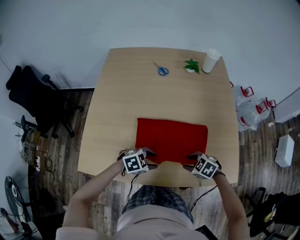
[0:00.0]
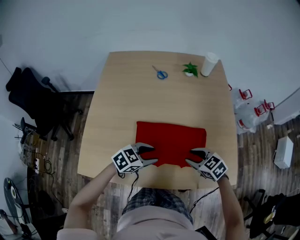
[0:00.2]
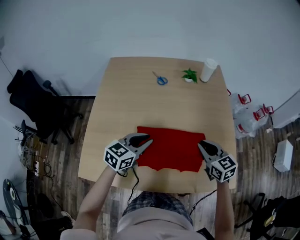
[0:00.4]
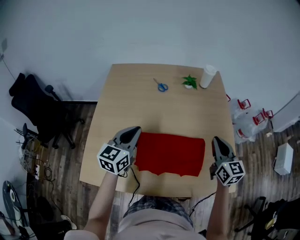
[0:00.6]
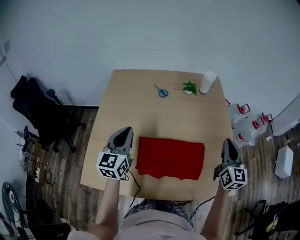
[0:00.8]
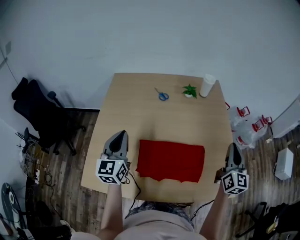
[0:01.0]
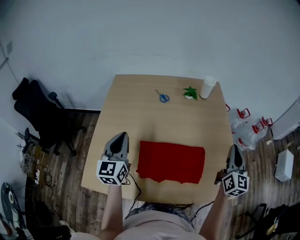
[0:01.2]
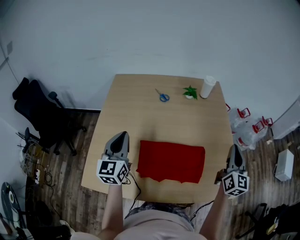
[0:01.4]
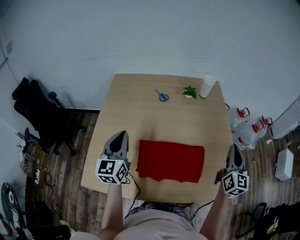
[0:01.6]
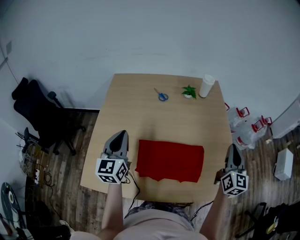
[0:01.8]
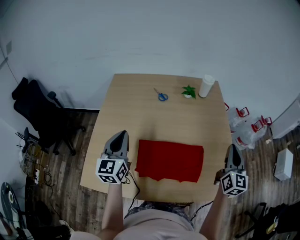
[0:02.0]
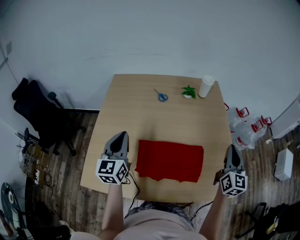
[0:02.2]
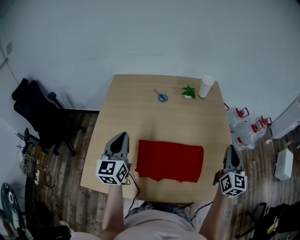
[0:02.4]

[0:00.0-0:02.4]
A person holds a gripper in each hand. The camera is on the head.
0:00.0 to 0:01.2: Both grippers move upward, some 30 cm. The right gripper tilts its fingers about 60 degrees upward, and closes its fingers, while the left gripper tilts its fingers some 50 degrees upward, and closes its fingers.
0:01.2 to 0:02.4: The two grippers keep their place.

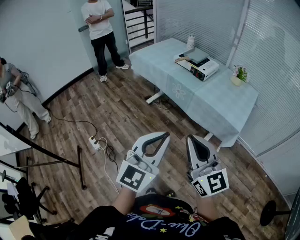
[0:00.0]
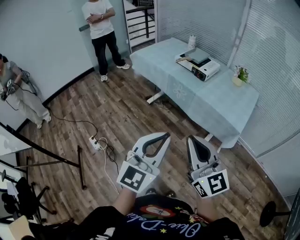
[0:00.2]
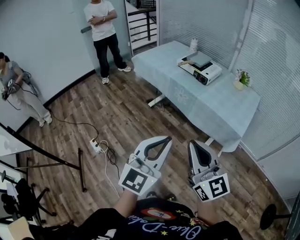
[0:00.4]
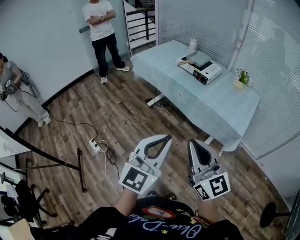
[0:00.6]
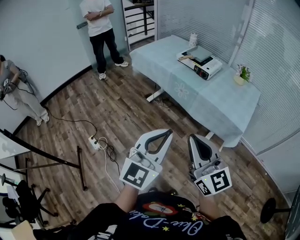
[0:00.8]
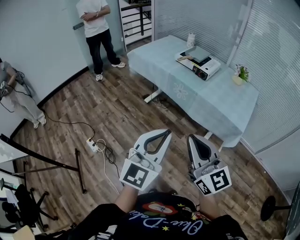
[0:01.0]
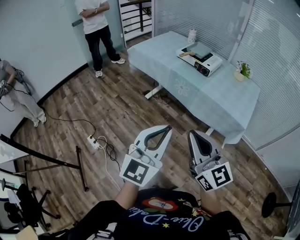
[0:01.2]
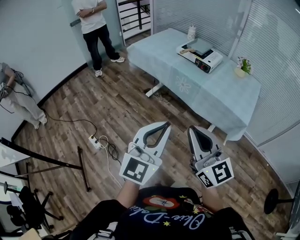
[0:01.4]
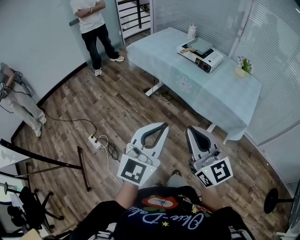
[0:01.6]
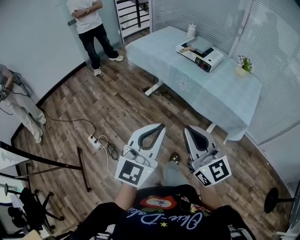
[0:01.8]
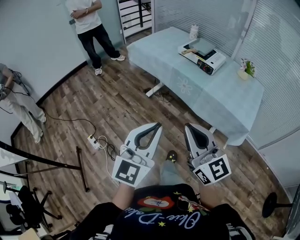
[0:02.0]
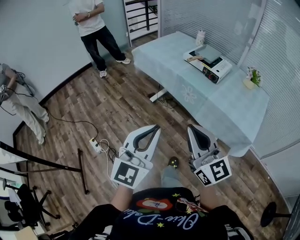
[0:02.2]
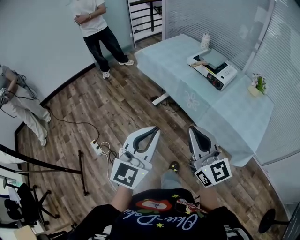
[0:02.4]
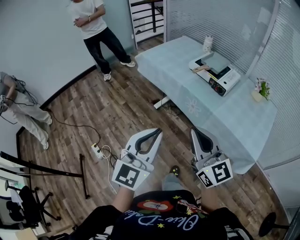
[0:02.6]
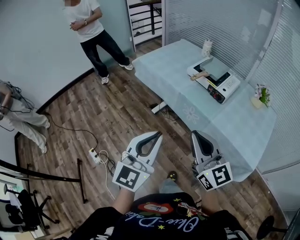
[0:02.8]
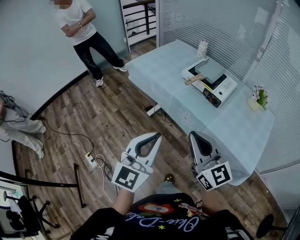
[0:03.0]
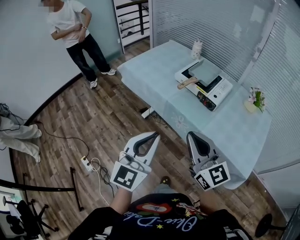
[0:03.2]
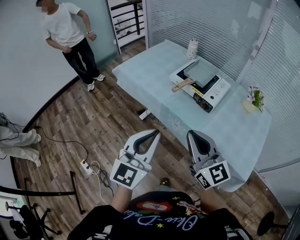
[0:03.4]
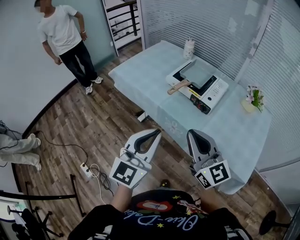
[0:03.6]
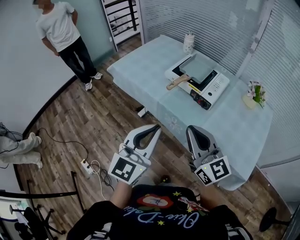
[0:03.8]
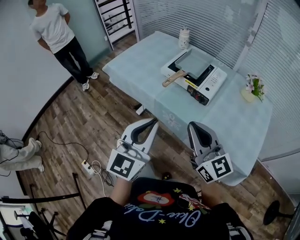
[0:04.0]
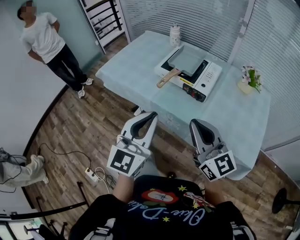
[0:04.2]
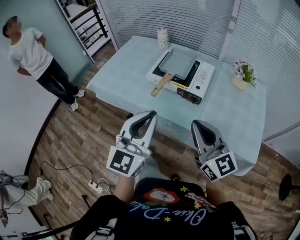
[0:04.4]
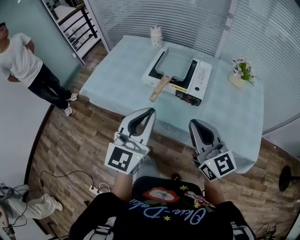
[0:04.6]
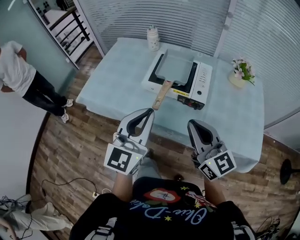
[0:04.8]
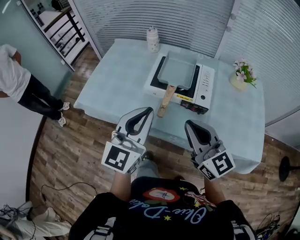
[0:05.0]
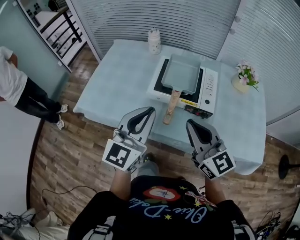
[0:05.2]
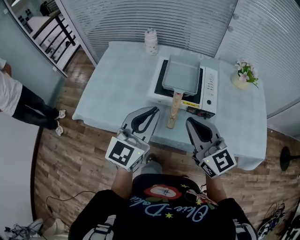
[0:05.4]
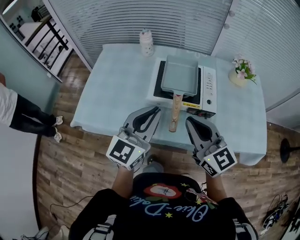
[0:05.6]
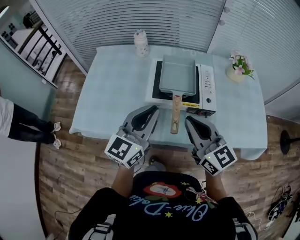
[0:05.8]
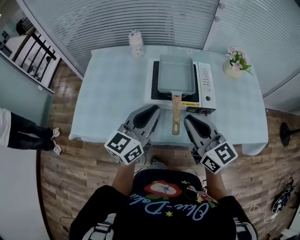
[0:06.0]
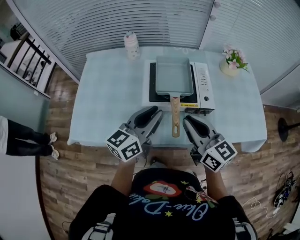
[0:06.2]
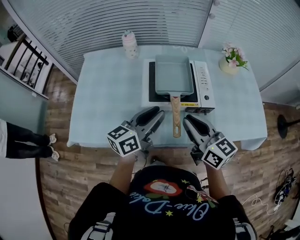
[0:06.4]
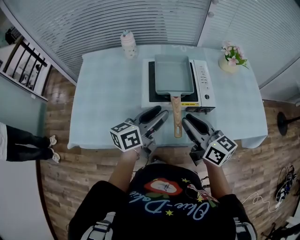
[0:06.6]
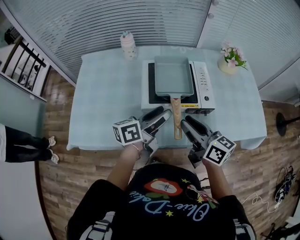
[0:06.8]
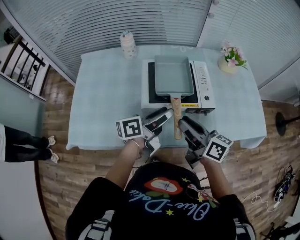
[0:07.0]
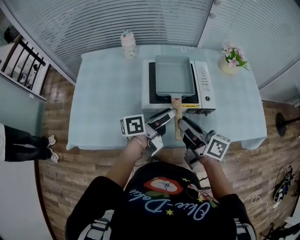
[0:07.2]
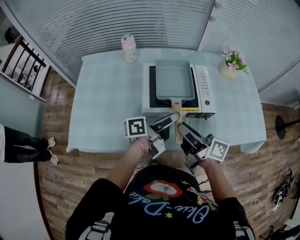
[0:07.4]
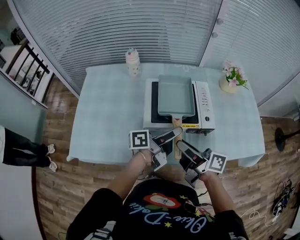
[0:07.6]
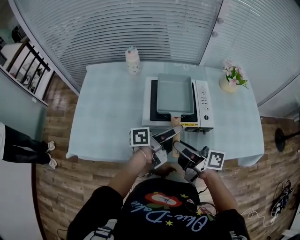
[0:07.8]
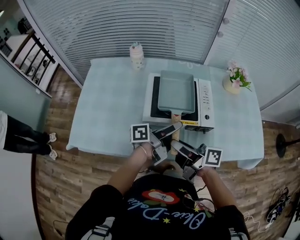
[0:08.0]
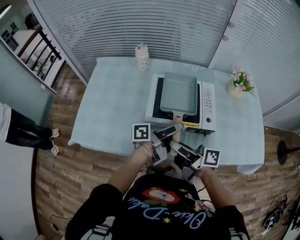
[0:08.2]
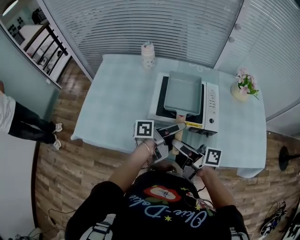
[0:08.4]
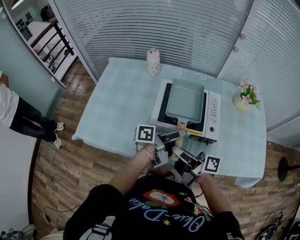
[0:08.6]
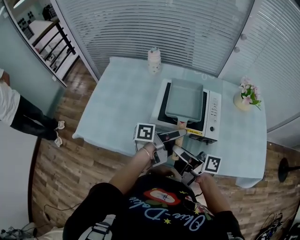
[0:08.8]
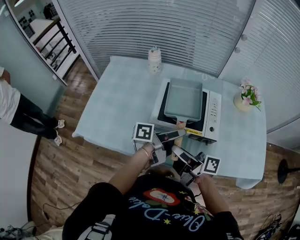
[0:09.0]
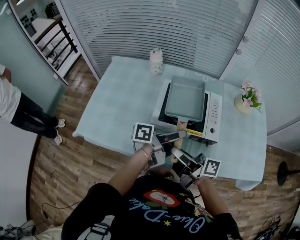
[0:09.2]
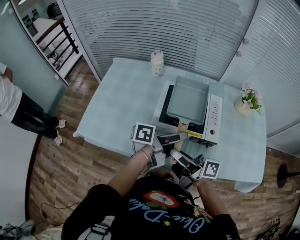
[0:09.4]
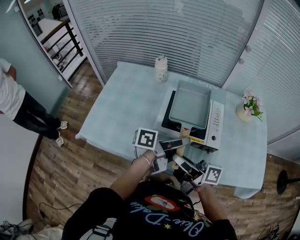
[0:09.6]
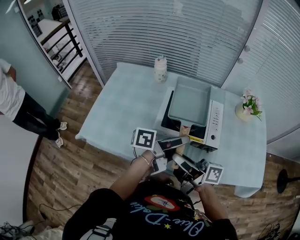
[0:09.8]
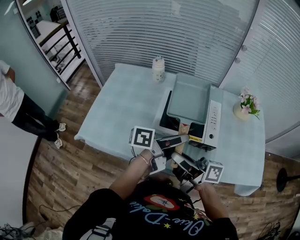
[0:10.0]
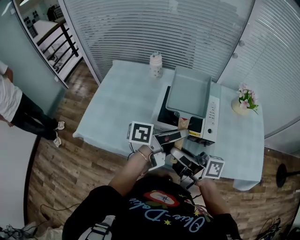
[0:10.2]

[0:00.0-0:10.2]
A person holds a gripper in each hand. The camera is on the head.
0:00.0 to 0:01.4: The left gripper moves to the left and forward, about 10 cm. The right gripper heads to the left, covering roughly 5 cm.
0:01.4 to 0:03.0: Both grippers move forward, approximately 30 cm.
0:03.0 to 0:04.4: The two grippers go approximately 20 cm forward and to the right.
0:04.4 to 0:05.8: Both grippers travel together forward and to the left, some 25 cm. The left gripper swivels about 30 degrees.
0:05.8 to 0:07.2: The right gripper moves downward, about 5 cm, rolls clockwise, seen from behind, by approximately 50 degrees, and opens. The left gripper travels downward and forward by roughly 15 cm, twists about 60 degrees counterclockwise, seen from behind, and opens up.
0:07.2 to 0:08.8: The right gripper swivels approximately 30 degrees, while the left gripper closes.
0:08.8 to 0:10.2: The two grippers go about 10 cm upward.

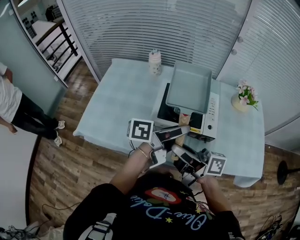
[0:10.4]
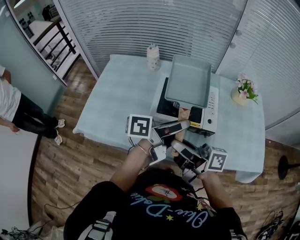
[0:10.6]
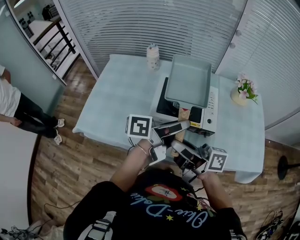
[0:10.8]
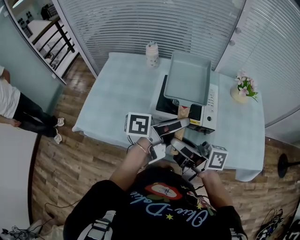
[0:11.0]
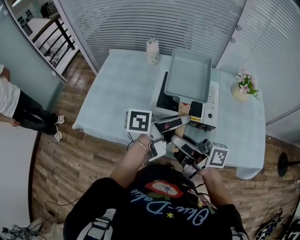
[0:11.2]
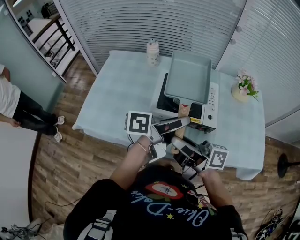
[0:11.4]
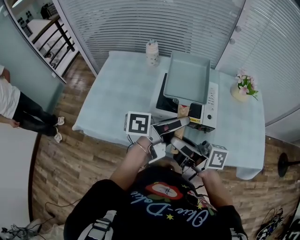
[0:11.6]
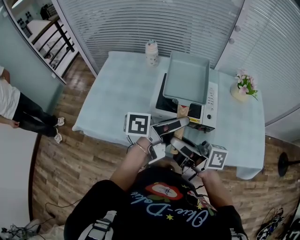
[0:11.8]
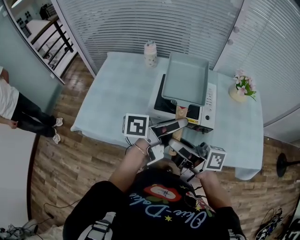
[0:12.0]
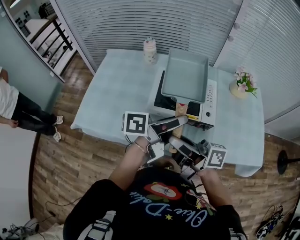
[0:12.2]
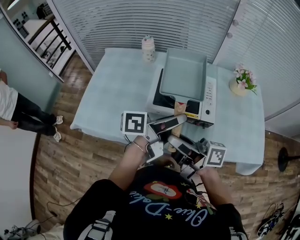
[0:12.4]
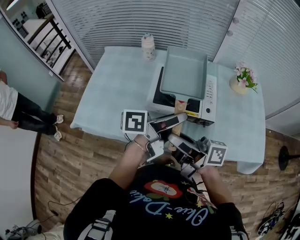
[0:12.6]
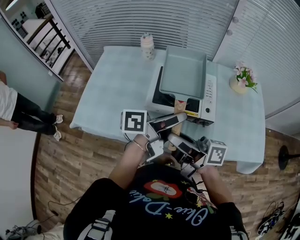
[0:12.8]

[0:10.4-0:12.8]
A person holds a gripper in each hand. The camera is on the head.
0:10.4 to 0:11.6: There are only small adjustments of the grippers.
0:11.6 to 0:12.8: The two grippers keep their place.

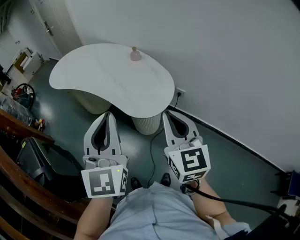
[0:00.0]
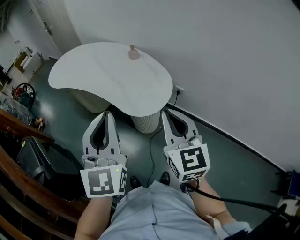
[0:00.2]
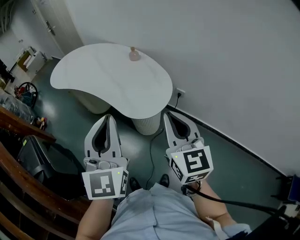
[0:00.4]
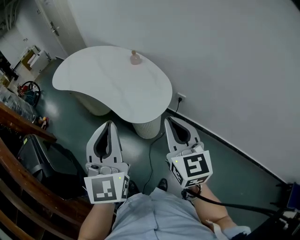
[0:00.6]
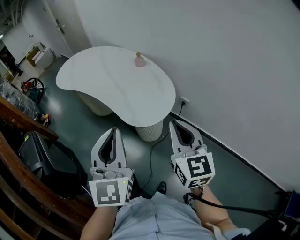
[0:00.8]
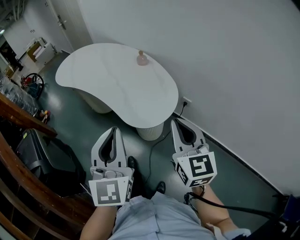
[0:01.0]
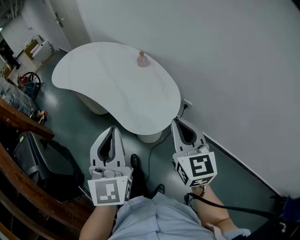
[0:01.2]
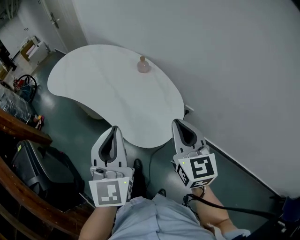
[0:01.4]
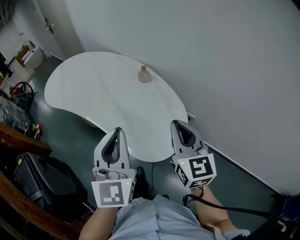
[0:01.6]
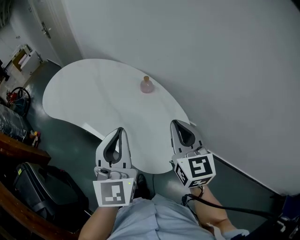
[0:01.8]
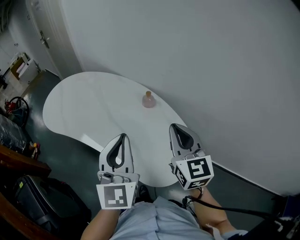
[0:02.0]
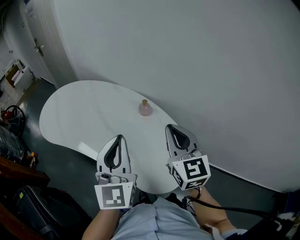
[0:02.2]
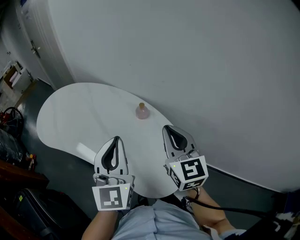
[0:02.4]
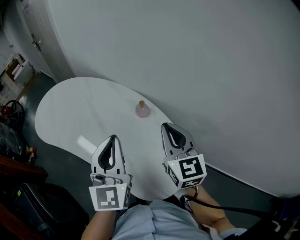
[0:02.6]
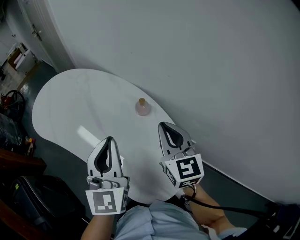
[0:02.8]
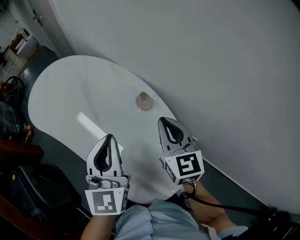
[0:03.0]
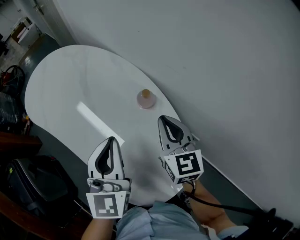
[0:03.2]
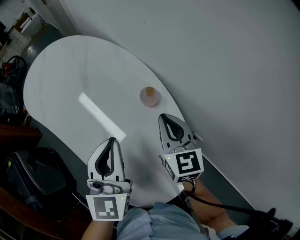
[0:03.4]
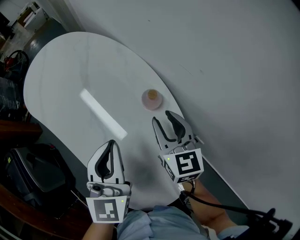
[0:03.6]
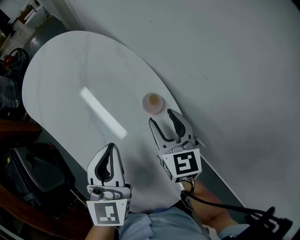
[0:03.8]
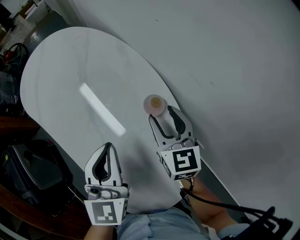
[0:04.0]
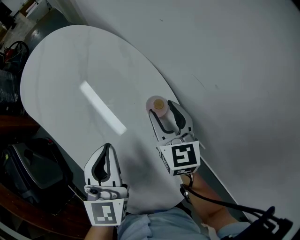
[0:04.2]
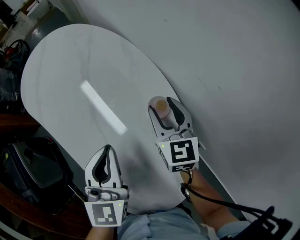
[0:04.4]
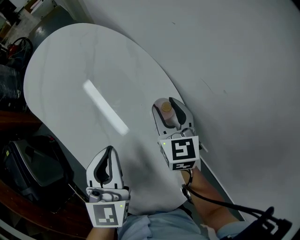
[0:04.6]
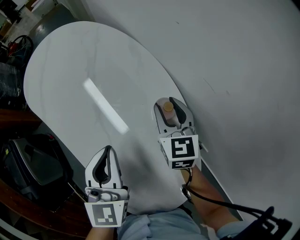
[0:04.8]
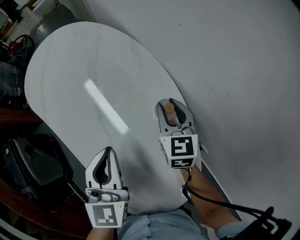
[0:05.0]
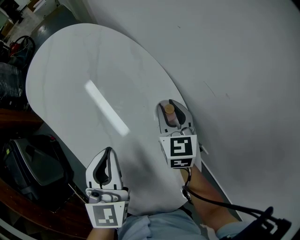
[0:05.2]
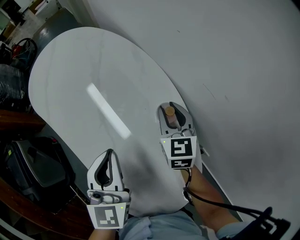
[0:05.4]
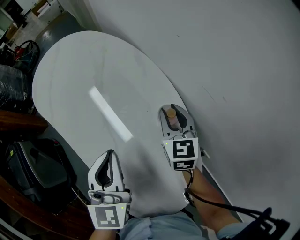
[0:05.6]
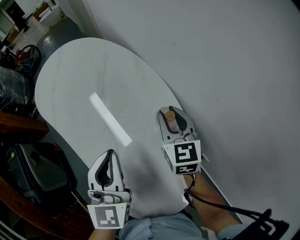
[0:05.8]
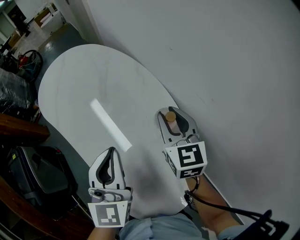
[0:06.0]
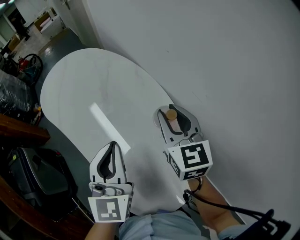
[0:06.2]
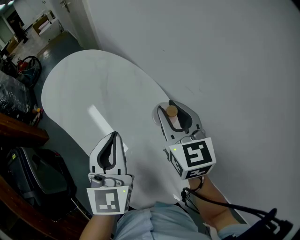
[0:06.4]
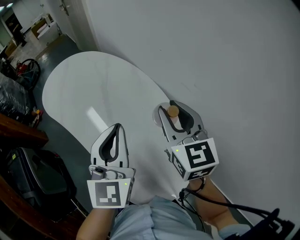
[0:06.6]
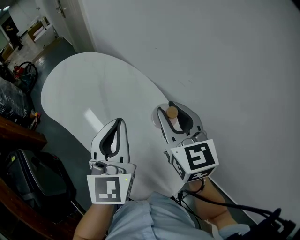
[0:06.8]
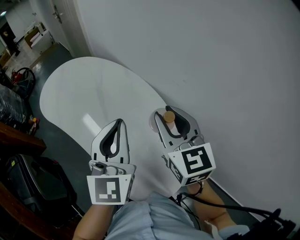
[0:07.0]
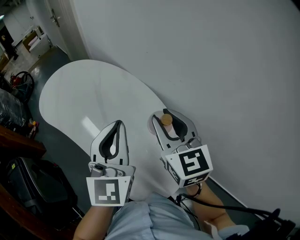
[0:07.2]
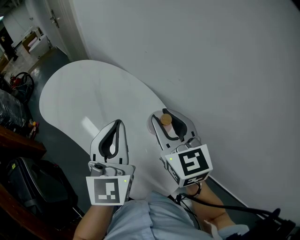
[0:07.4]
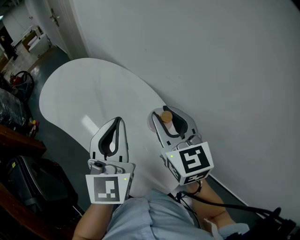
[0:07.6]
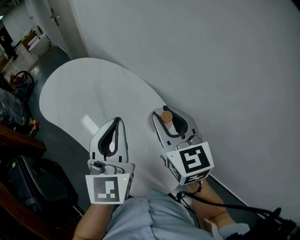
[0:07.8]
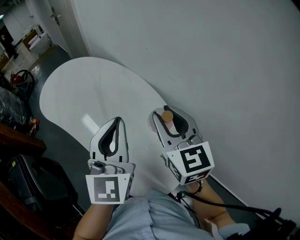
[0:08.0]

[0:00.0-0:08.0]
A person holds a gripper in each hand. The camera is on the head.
0:00.0 to 0:01.6: The two grippers go some 15 cm forward.
0:01.6 to 0:03.2: Both grippers move forward and downward, roughly 15 cm.
0:03.2 to 0:04.8: The right gripper goes about 10 cm forward and to the left, and opens its fingers; the left gripper travels to the left by some 5 cm.
0:04.8 to 0:06.4: The right gripper moves upward, about 10 cm.
0:06.4 to 0:08.0: The left gripper is displaced upward by some 5 cm. Meanwhile the right gripper is displaced backward by roughly 10 cm.
